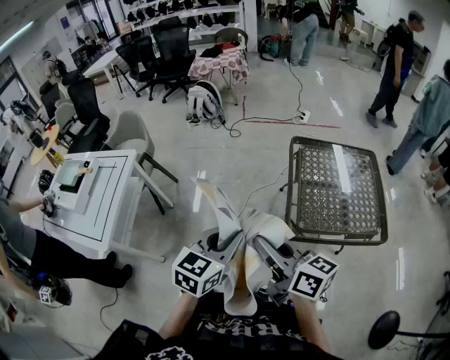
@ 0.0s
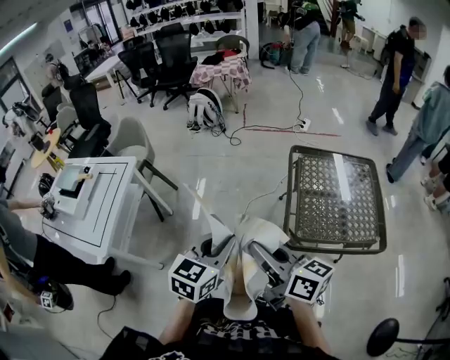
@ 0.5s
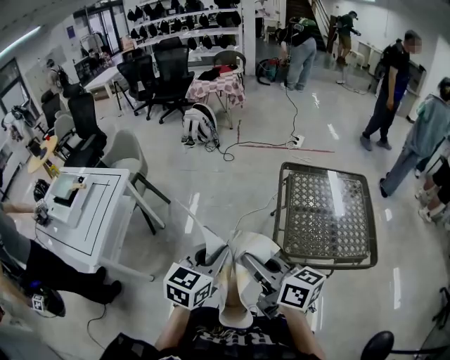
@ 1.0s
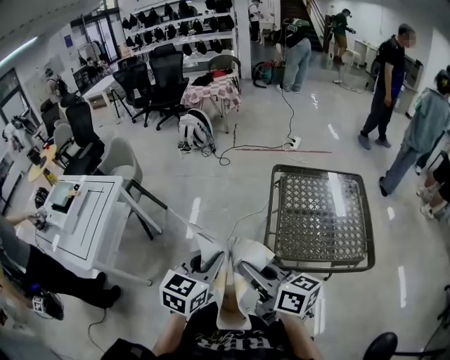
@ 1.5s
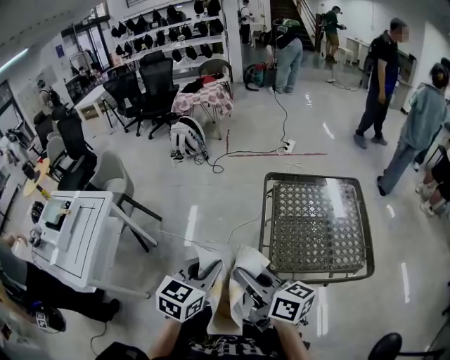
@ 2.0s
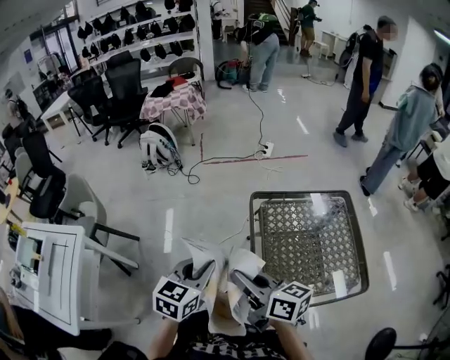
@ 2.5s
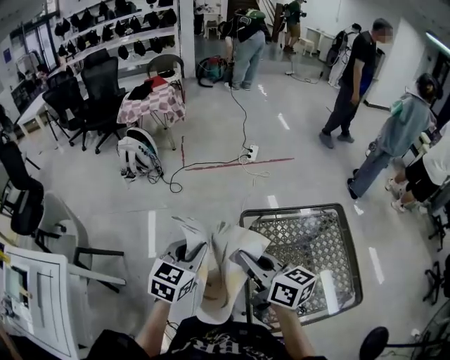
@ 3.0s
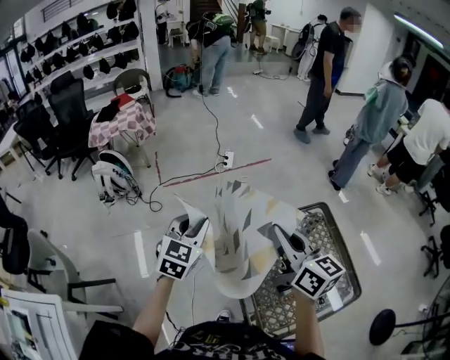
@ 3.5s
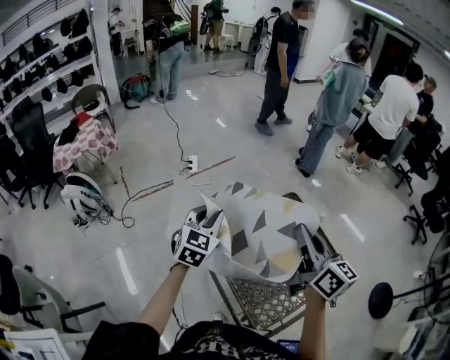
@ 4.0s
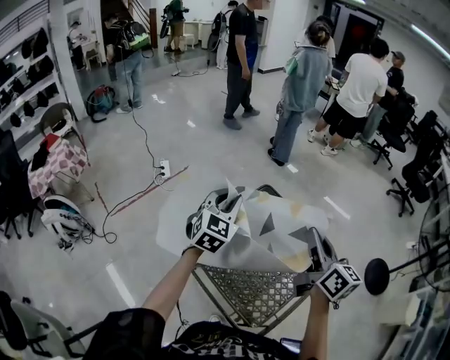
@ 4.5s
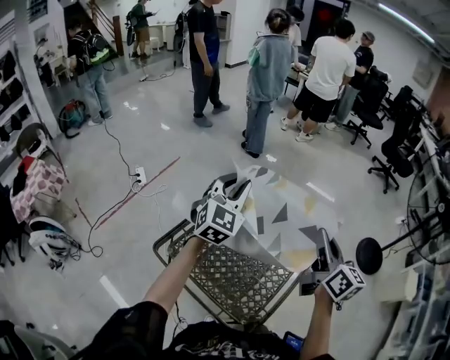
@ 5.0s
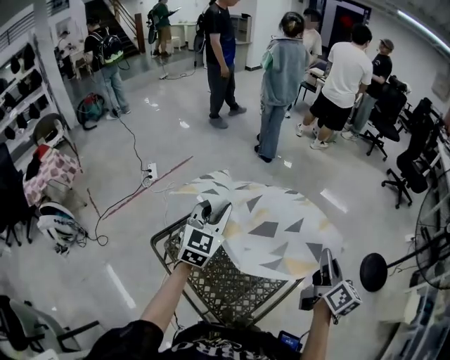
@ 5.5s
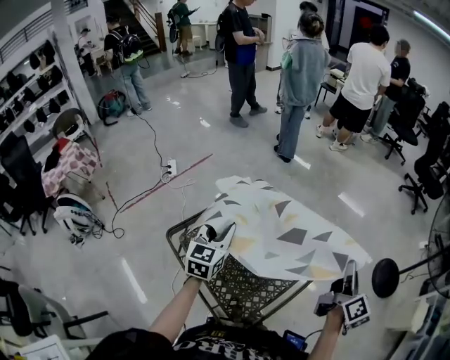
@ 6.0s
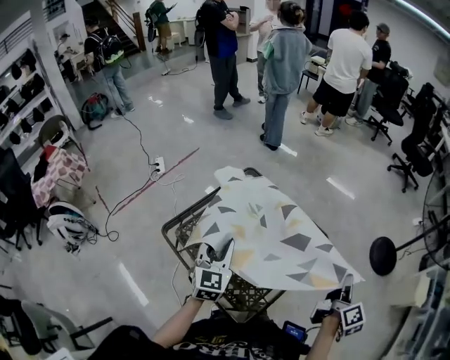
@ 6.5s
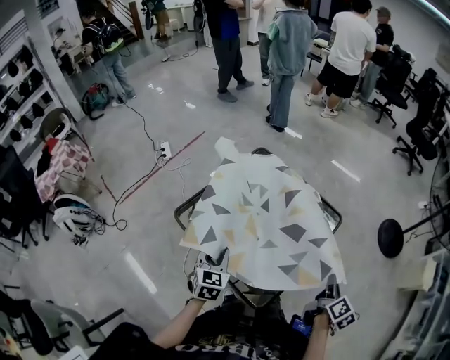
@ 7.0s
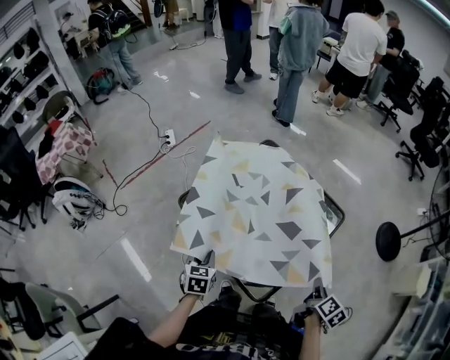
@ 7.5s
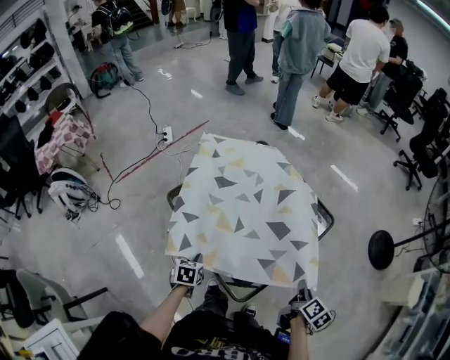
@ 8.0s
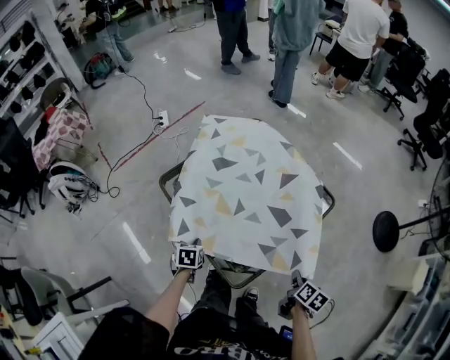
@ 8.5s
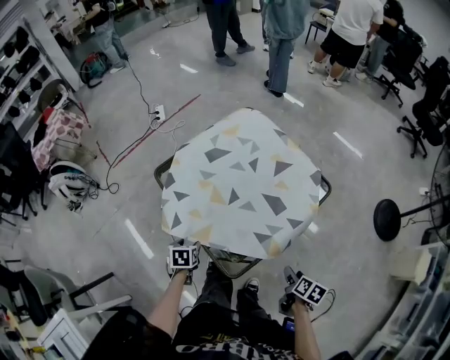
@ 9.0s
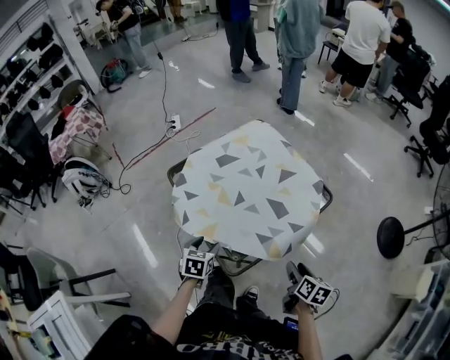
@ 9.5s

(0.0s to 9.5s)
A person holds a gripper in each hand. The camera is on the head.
0.0s - 2.0s: The two grippers go approximately 10 cm to the right and forward.
2.0s - 4.0s: The pair of grippers is taken approximately 50 cm. The left gripper swivels about 40 degrees. Meanwhile the right gripper turns by some 60 degrees.
4.0s - 5.5s: The right gripper shifts by about 35 cm, and swivels approximately 40 degrees, while the left gripper moves roughly 30 cm, and turns by some 20 degrees.
5.5s - 7.5s: The grippers both shift backward and downward by some 35 cm. The right gripper angles its fingers downward, by about 30 degrees; the left gripper tilts its fingers approximately 40 degrees downward.
7.5s - 9.5s: The left gripper moves to the right and backward, about 10 cm, and opens up, while the right gripper heads downward, covering roughly 10 cm, changes its angle by about 30 degrees, and opens.

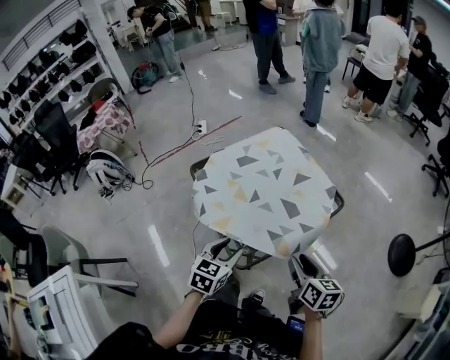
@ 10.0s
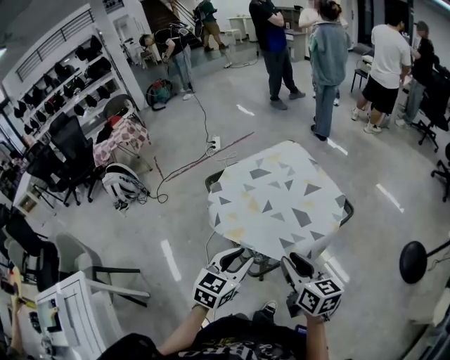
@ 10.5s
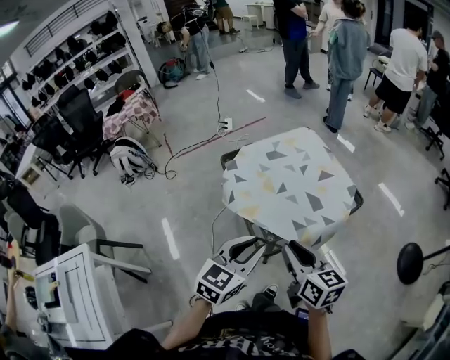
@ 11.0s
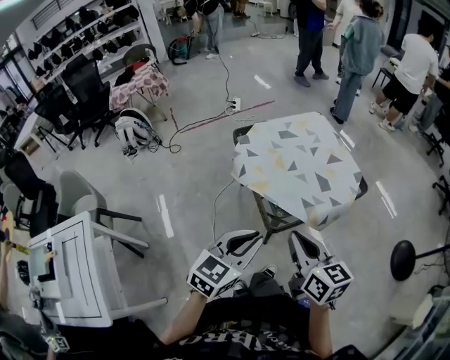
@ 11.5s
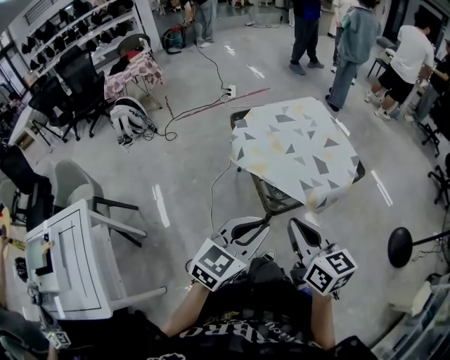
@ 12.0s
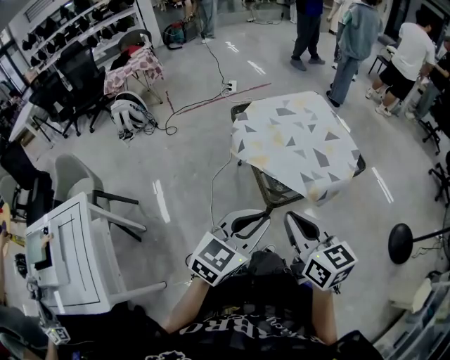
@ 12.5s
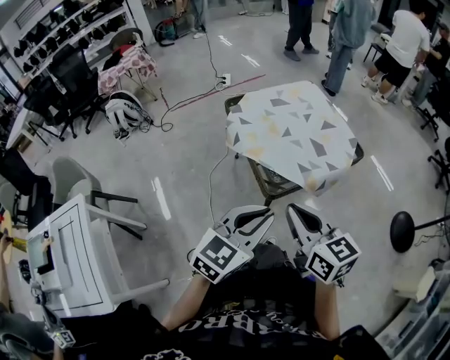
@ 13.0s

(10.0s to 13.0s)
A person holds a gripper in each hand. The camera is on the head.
10.0s - 11.5s: The left gripper heads backward and upward, covering some 20 cm, and closes its fingers. Meanwhile the right gripper moves to the left, backward and upward, roughly 25 cm, turns by roughly 20 degrees, and closes.
11.5s - 13.0s: The left gripper shifts by some 5 cm.

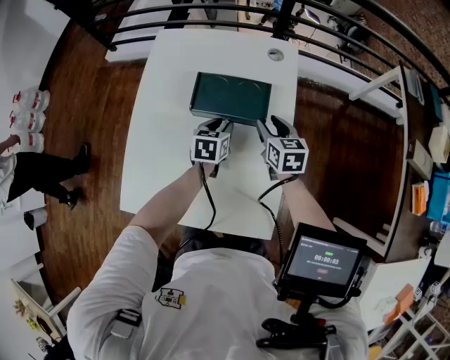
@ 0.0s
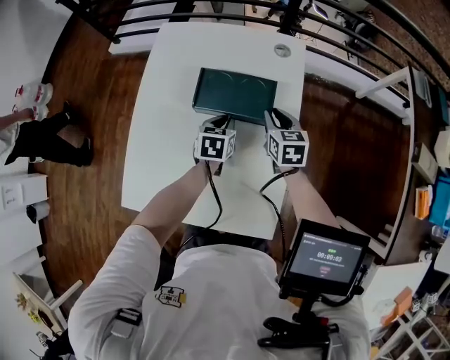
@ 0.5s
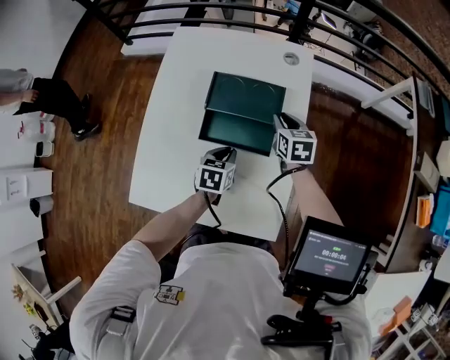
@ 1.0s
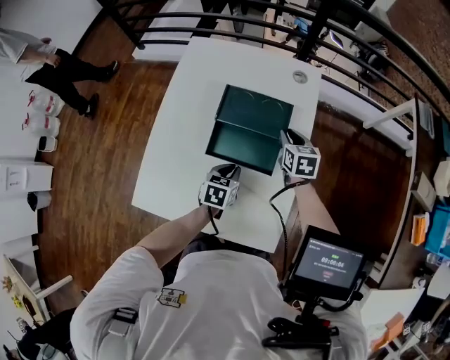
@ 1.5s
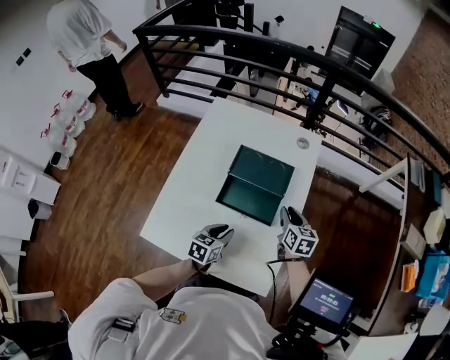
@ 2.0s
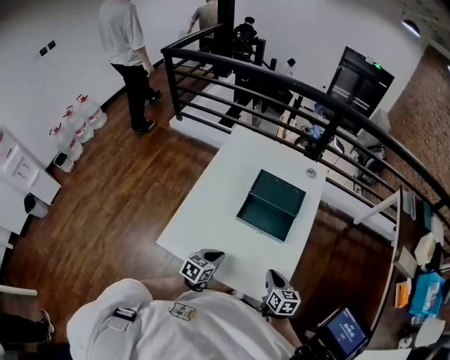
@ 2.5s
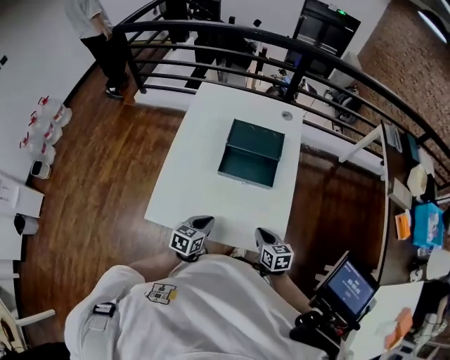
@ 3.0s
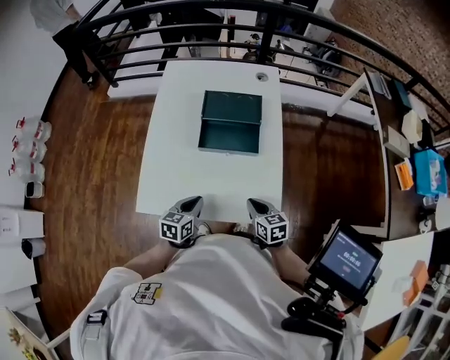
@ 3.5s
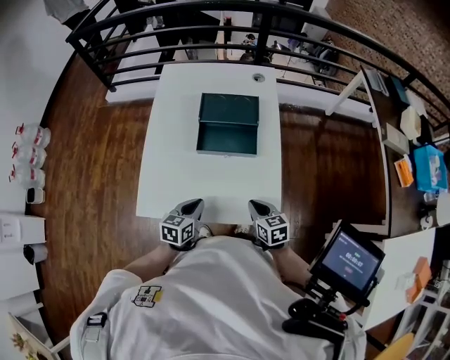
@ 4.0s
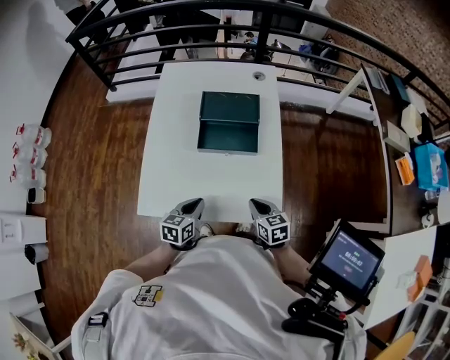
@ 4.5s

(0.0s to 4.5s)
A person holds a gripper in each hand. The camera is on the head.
0.0s - 2.0s: The left gripper heads backward, covering roughly 15 cm. The right gripper moves backward, approximately 5 cm.
2.0s - 4.5s: The left gripper goes about 15 cm backward and to the left, and closes its fingers. The right gripper is displaced backward by roughly 25 cm, and closes its fingers.

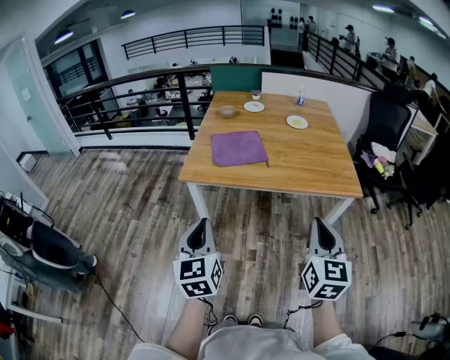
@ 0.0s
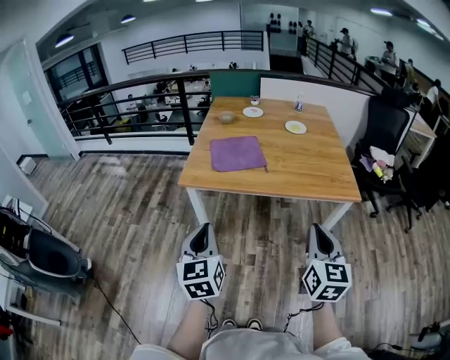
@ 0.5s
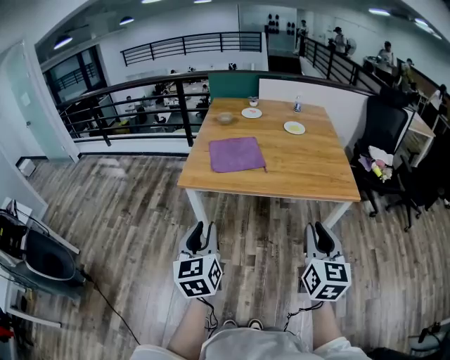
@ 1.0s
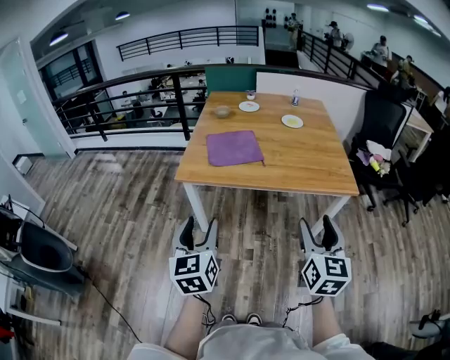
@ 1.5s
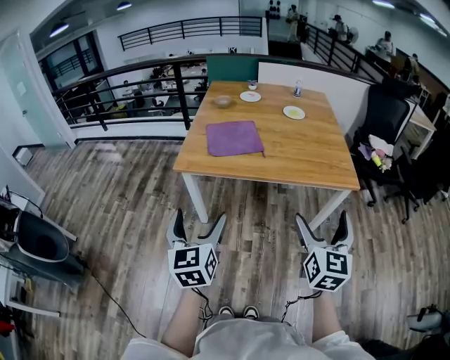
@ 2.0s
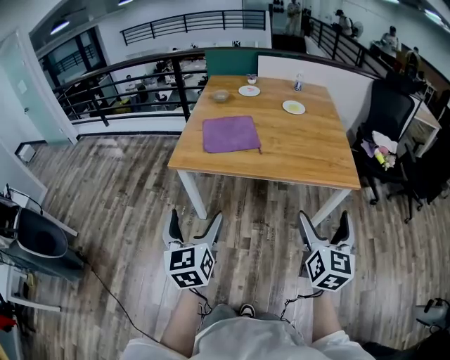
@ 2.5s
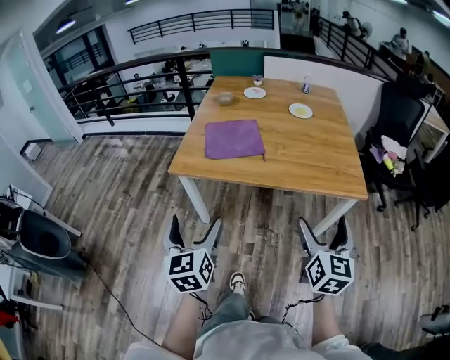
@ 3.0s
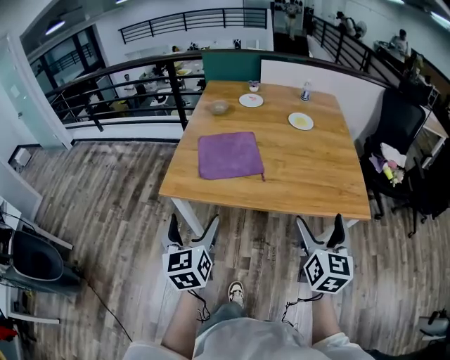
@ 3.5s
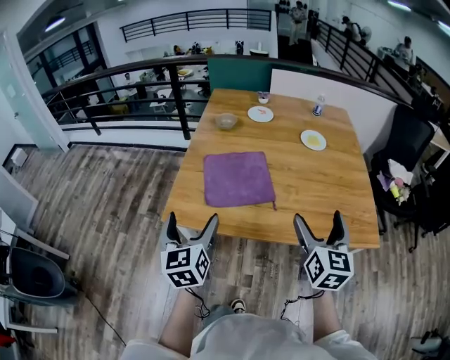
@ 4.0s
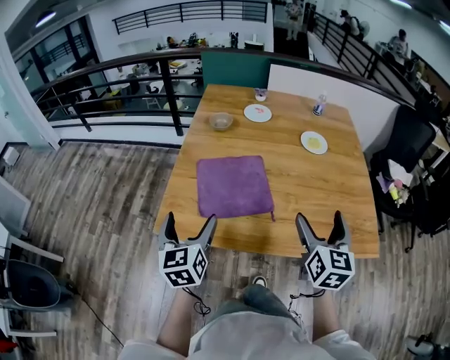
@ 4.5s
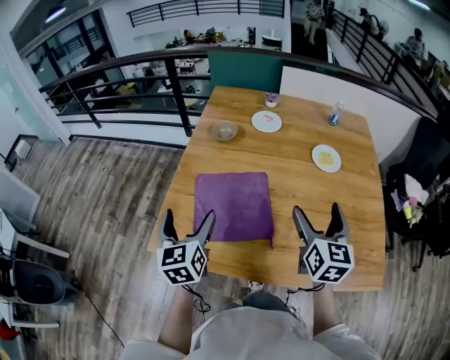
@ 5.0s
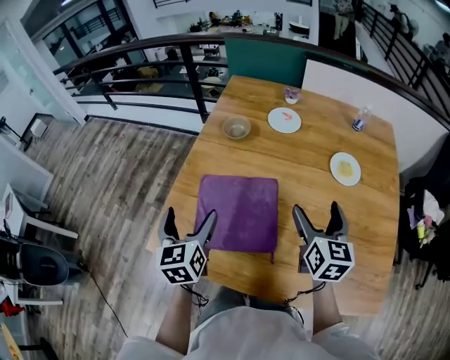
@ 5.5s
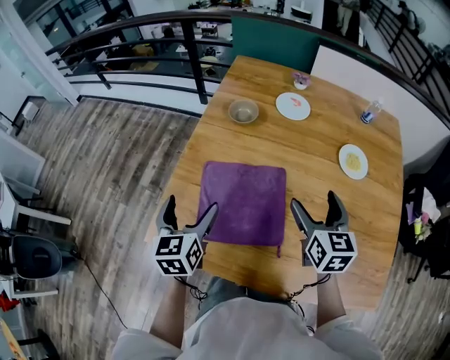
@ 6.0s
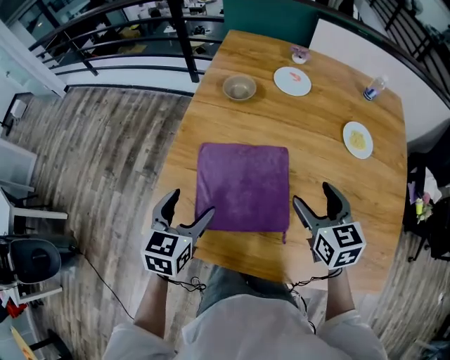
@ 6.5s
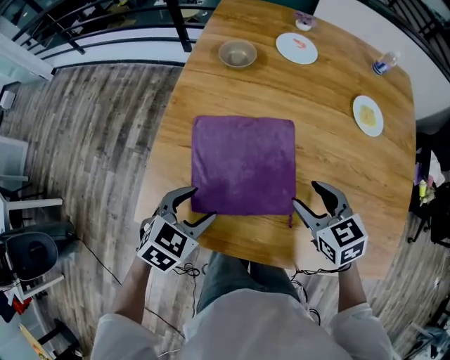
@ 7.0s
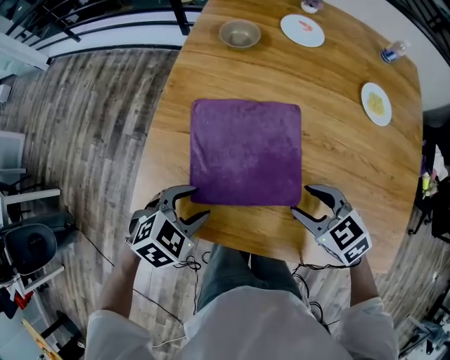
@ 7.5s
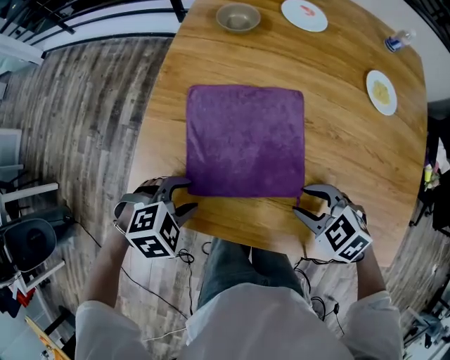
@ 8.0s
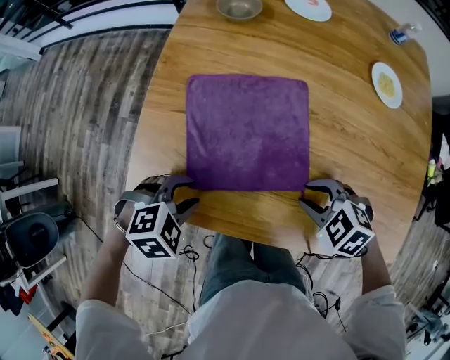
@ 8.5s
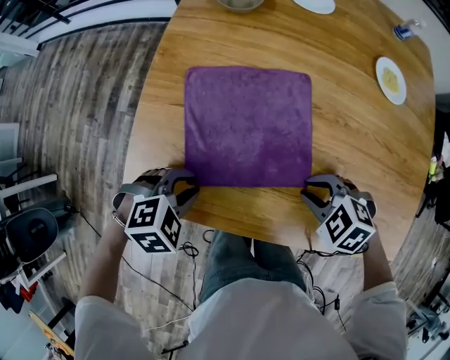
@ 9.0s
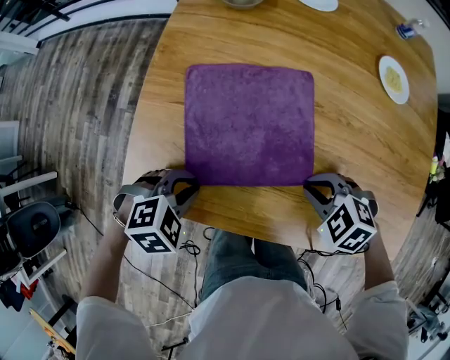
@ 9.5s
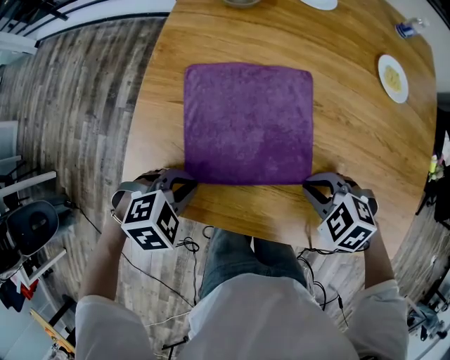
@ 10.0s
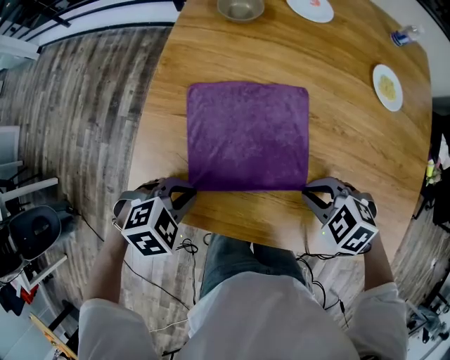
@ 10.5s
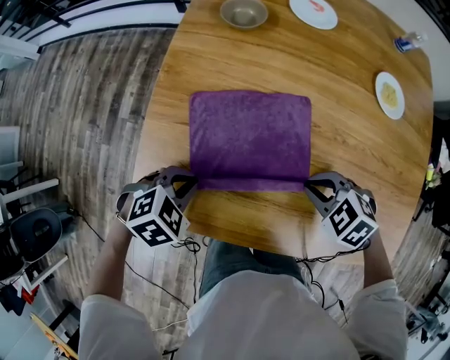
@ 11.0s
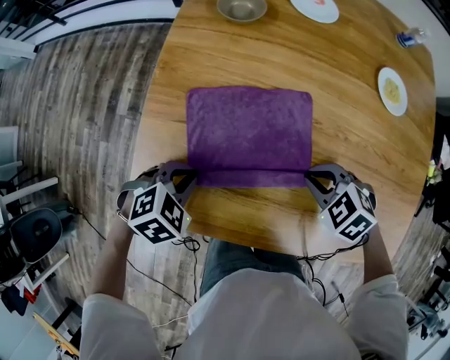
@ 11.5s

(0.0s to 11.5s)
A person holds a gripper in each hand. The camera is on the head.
0.0s - 2.0s: The left gripper opens. Meanwhile the right gripper opens its fingers.
2.0s - 4.0s: Both grippers move forward, some 30 cm.
4.0s - 6.0s: Both grippers travel together forward, about 30 cm. The right gripper changes its angle by roughly 20 degrees.
6.0s - 7.5s: Both grippers move downward and backward, roughly 15 cm. The right gripper rotates roughly 50 degrees, and closes up; the left gripper tilts its fingers some 30 degrees downward, and closes up.
7.5s - 9.5s: The right gripper moves downward, some 5 cm, turns by some 30 degrees, and closes.
9.5s - 11.5s: The left gripper shifts by roughly 5 cm. The right gripper changes place by roughly 5 cm.
